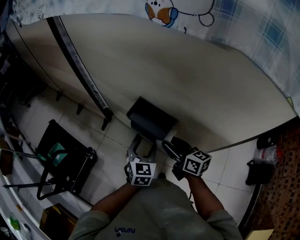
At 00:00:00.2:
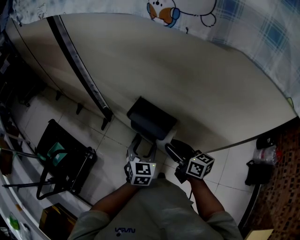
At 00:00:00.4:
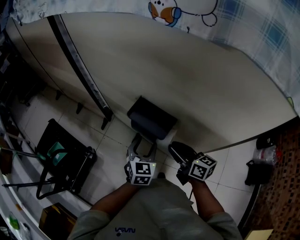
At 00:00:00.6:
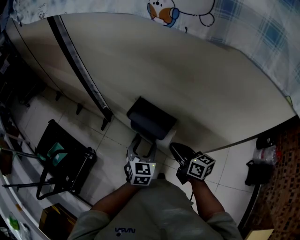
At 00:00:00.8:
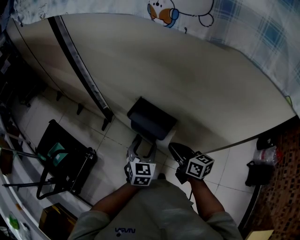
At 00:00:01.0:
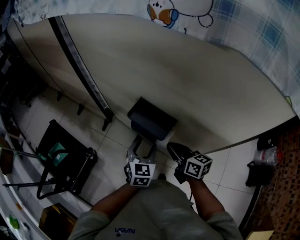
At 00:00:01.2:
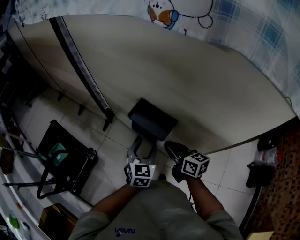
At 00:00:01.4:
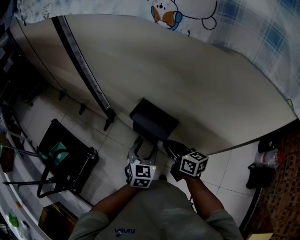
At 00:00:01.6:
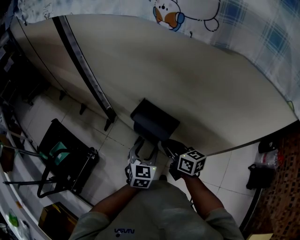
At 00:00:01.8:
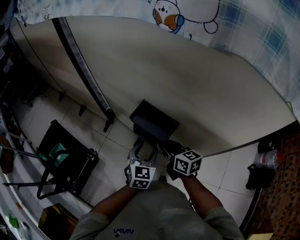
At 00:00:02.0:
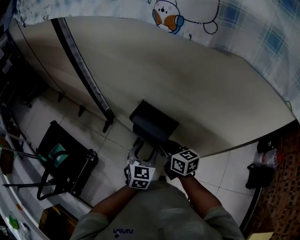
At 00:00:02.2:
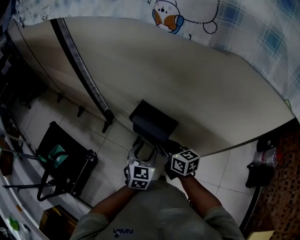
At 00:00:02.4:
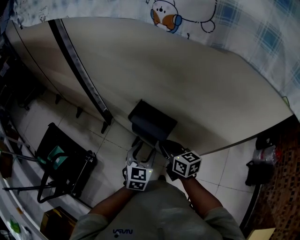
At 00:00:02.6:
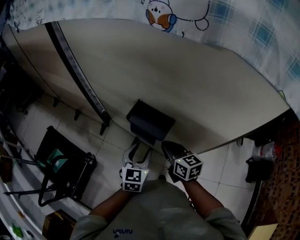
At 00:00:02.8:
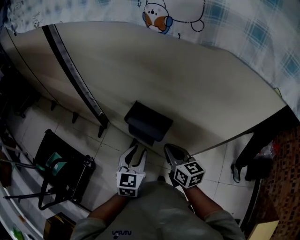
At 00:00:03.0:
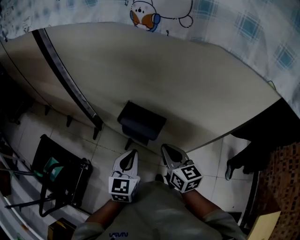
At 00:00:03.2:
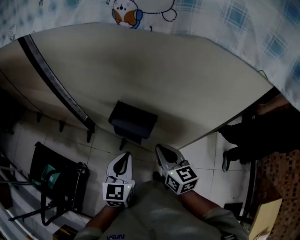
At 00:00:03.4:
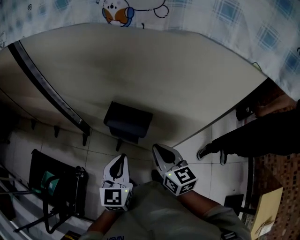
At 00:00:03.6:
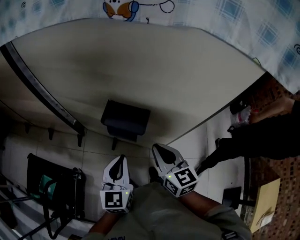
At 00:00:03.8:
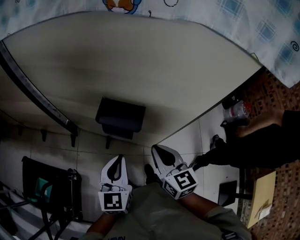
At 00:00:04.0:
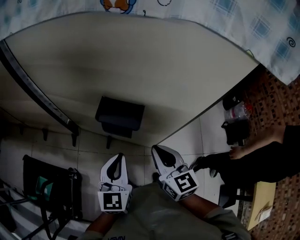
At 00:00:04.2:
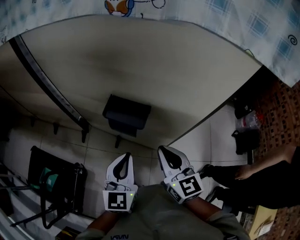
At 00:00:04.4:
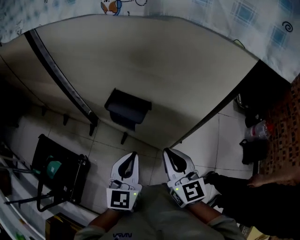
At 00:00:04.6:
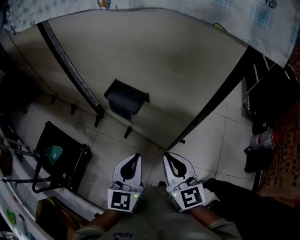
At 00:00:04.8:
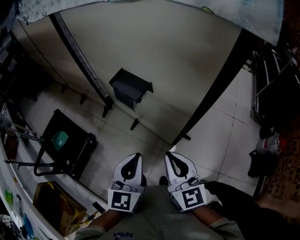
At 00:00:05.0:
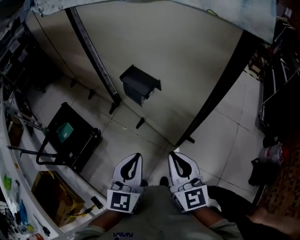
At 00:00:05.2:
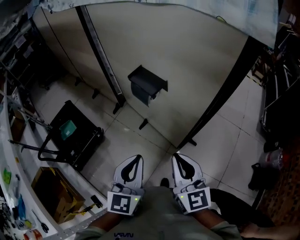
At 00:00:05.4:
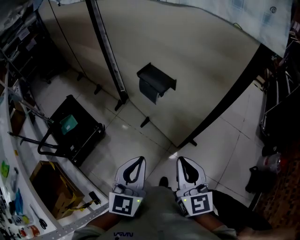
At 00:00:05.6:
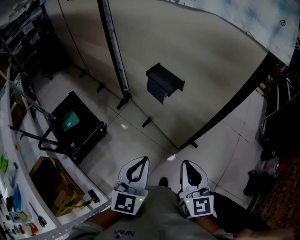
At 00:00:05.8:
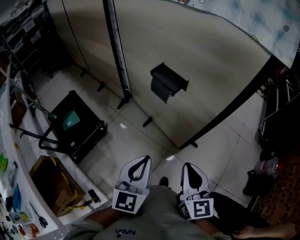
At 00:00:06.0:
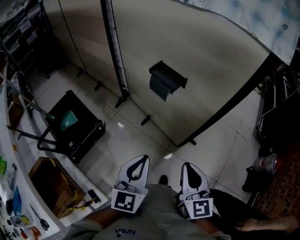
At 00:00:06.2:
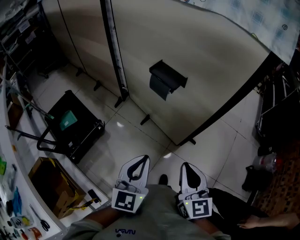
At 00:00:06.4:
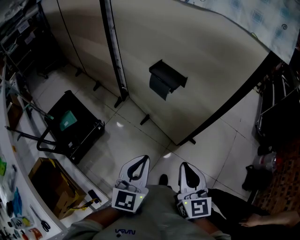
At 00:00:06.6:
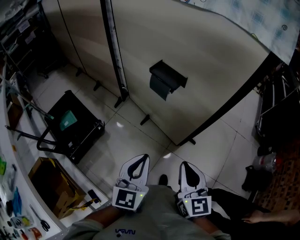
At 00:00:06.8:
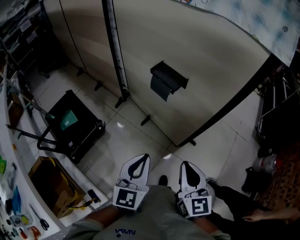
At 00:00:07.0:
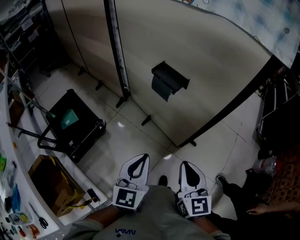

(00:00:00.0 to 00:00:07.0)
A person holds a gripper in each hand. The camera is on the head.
00:00:00.0 - 00:00:01.4: The right gripper closes its fingers.
00:00:01.4 - 00:00:02.8: The left gripper changes place by roughly 5 cm, and closes, while the right gripper rotates some 20 degrees.
00:00:02.8 - 00:00:04.2: The grippers both shift upward and backward by roughly 10 cm. The right gripper rotates about 20 degrees; the left gripper closes its fingers.
00:00:04.2 - 00:00:05.6: Both grippers travel together backward, approximately 20 cm.
00:00:05.6 - 00:00:07.0: There are only small adjustments of the grippers.

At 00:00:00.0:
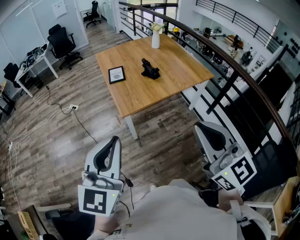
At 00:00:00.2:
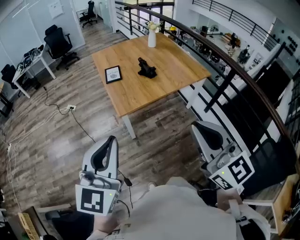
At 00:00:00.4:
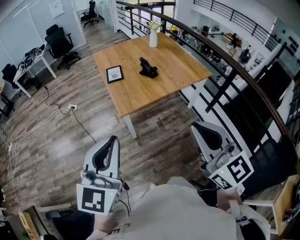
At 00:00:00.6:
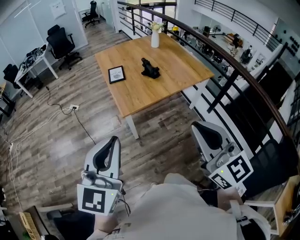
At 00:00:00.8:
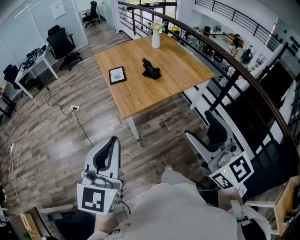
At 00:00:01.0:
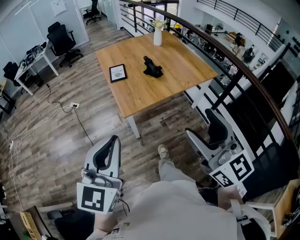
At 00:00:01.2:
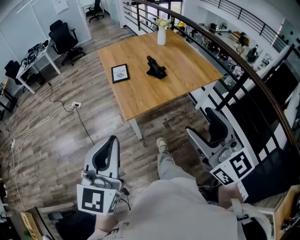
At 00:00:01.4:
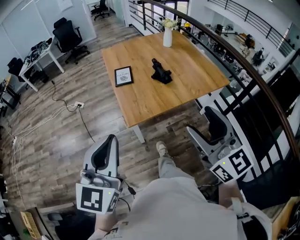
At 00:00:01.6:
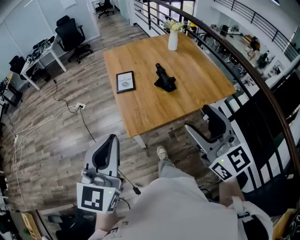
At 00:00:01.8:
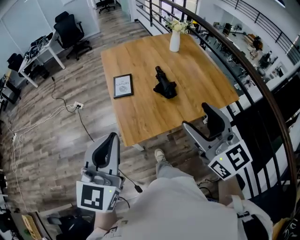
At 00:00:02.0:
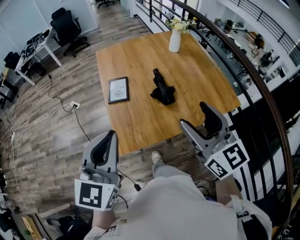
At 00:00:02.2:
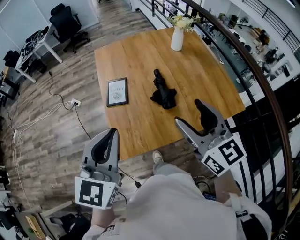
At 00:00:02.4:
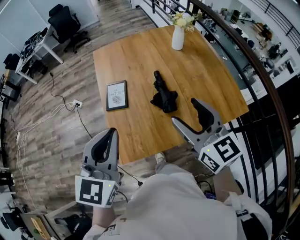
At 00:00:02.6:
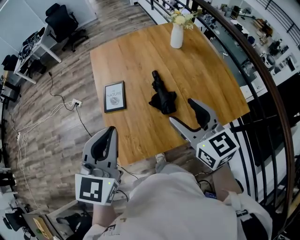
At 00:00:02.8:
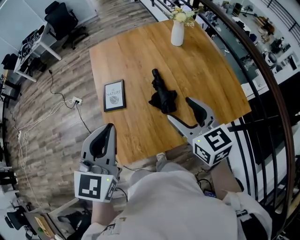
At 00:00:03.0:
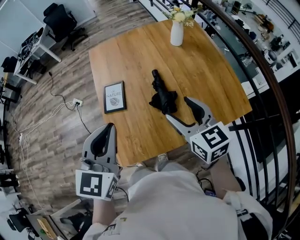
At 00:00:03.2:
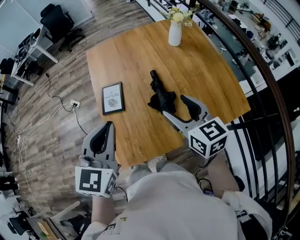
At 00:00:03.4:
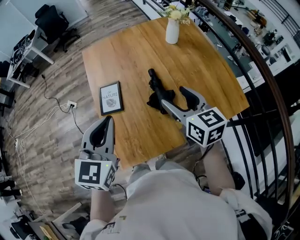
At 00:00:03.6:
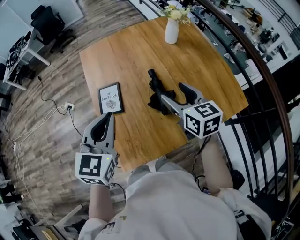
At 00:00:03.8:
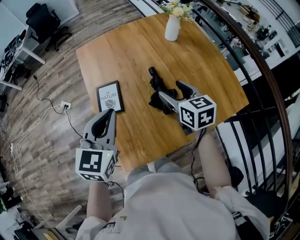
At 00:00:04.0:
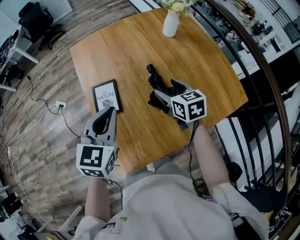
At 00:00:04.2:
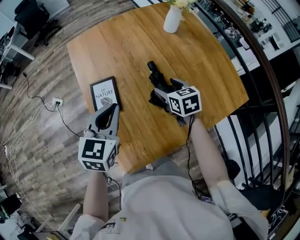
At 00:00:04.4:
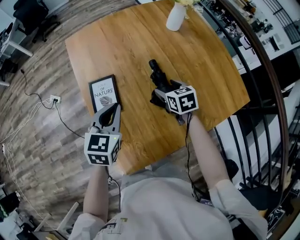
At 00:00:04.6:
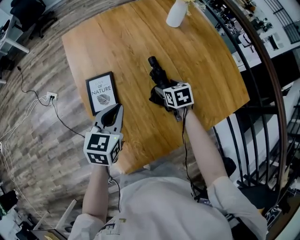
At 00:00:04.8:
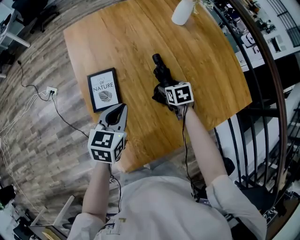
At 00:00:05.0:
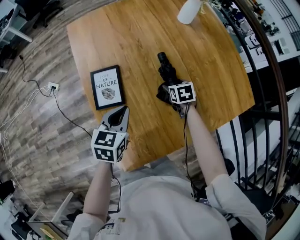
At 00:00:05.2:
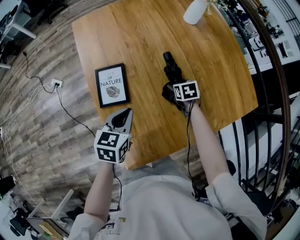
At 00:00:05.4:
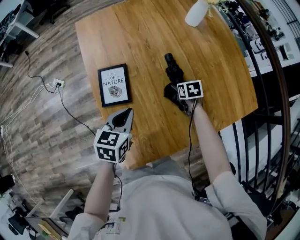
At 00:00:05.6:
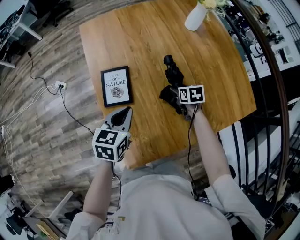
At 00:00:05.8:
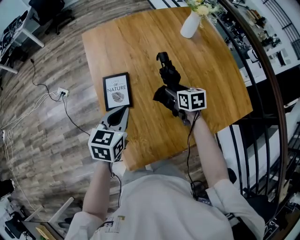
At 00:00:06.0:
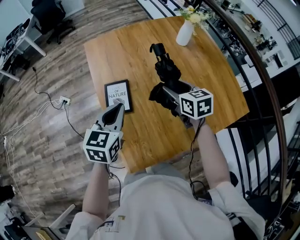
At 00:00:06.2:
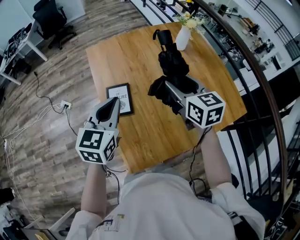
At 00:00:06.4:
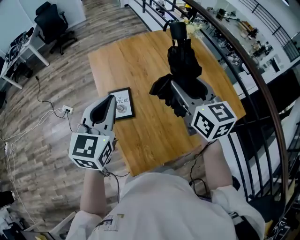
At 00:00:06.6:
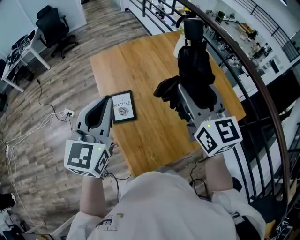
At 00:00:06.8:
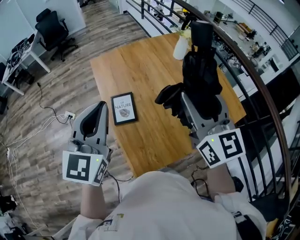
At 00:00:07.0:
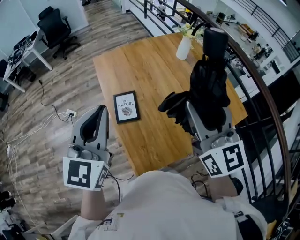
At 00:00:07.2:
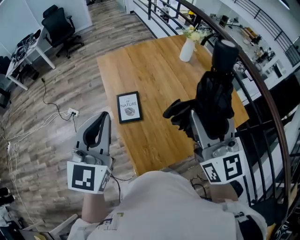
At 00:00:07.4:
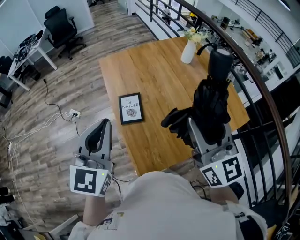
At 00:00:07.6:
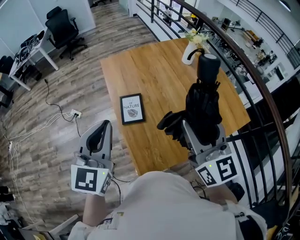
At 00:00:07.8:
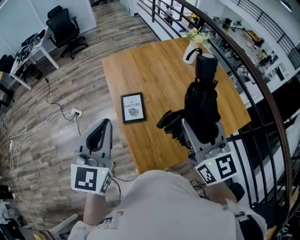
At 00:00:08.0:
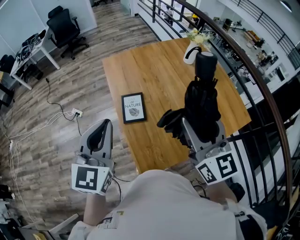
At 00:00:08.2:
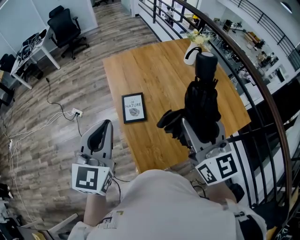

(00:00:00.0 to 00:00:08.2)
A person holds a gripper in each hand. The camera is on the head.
00:00:00.0 - 00:00:01.6: The grippers both shift forward by about 25 cm. The right gripper opens its fingers.
00:00:01.6 - 00:00:03.2: The grippers both shift forward by some 35 cm. The right gripper rotates about 30 degrees.
00:00:03.2 - 00:00:05.0: Both grippers travel together downward, approximately 35 cm. The left gripper swivels approximately 30 degrees. Meanwhile the right gripper points its fingers approximately 40 degrees further downward.
00:00:05.0 - 00:00:06.6: The left gripper goes about 35 cm upward, and angles its fingers upward, by roughly 30 degrees; the right gripper heads upward, covering roughly 50 cm, and tilts its fingers some 60 degrees upward.
00:00:06.6 - 00:00:08.2: The left gripper shifts about 10 cm backward and to the left, while the right gripper is displaced backward by roughly 10 cm.

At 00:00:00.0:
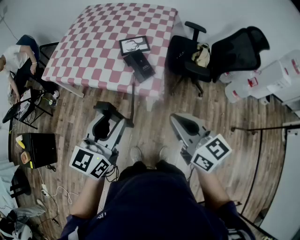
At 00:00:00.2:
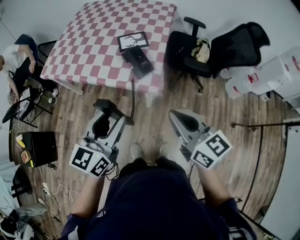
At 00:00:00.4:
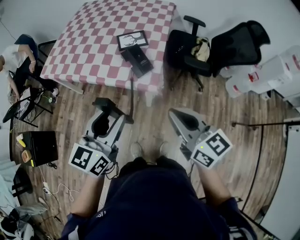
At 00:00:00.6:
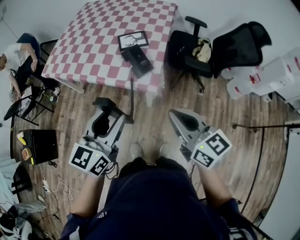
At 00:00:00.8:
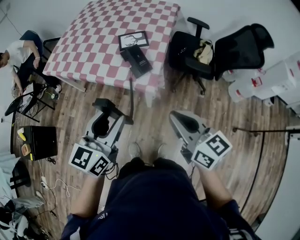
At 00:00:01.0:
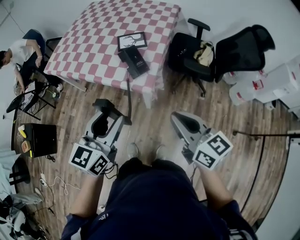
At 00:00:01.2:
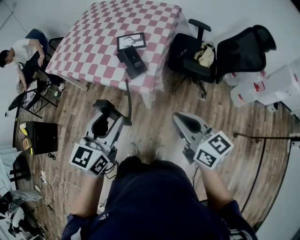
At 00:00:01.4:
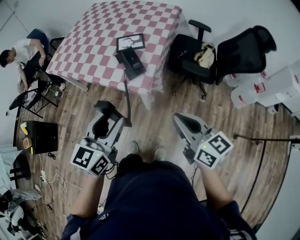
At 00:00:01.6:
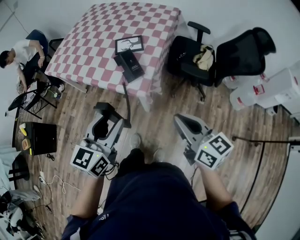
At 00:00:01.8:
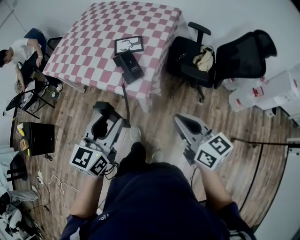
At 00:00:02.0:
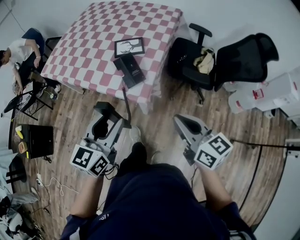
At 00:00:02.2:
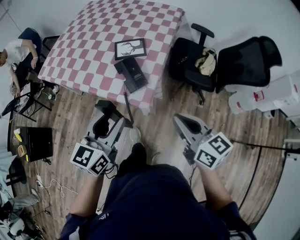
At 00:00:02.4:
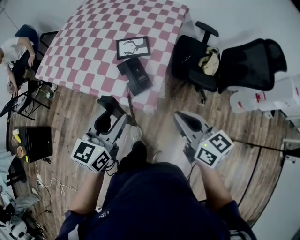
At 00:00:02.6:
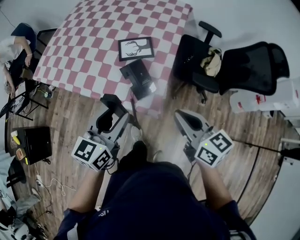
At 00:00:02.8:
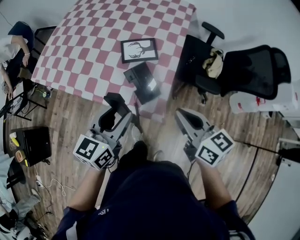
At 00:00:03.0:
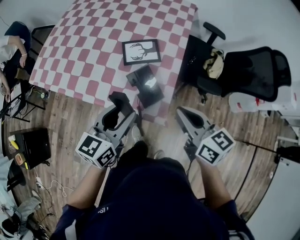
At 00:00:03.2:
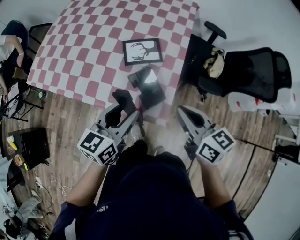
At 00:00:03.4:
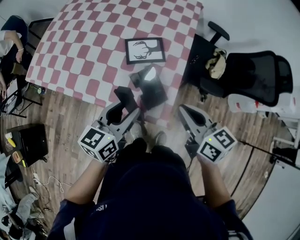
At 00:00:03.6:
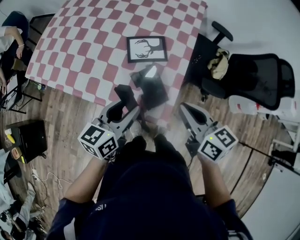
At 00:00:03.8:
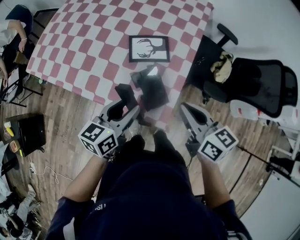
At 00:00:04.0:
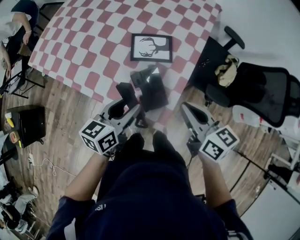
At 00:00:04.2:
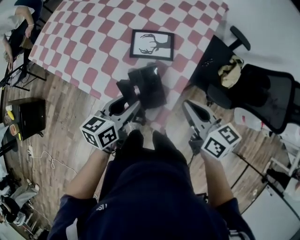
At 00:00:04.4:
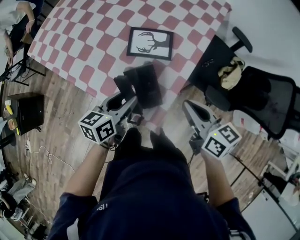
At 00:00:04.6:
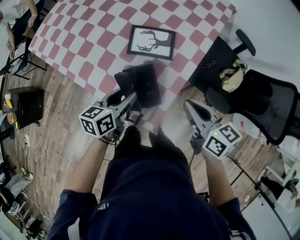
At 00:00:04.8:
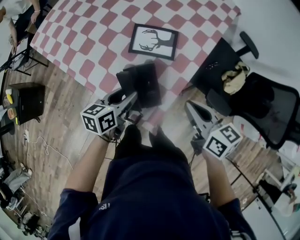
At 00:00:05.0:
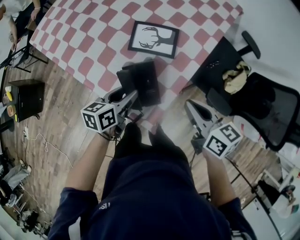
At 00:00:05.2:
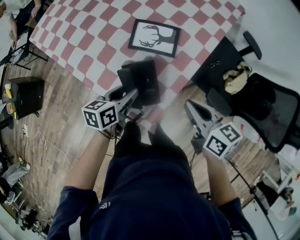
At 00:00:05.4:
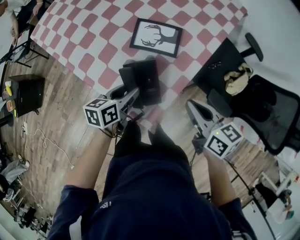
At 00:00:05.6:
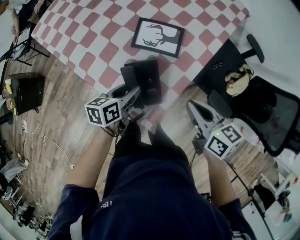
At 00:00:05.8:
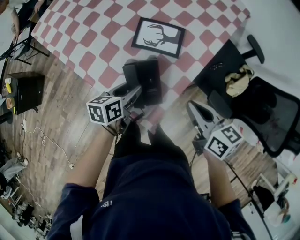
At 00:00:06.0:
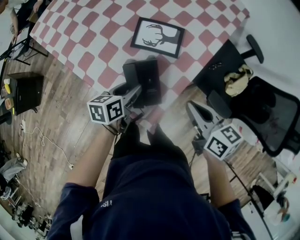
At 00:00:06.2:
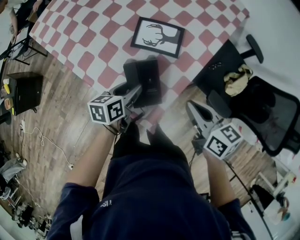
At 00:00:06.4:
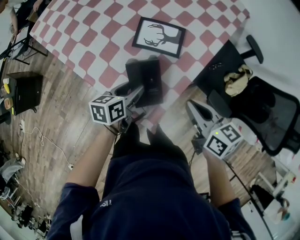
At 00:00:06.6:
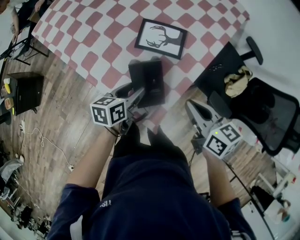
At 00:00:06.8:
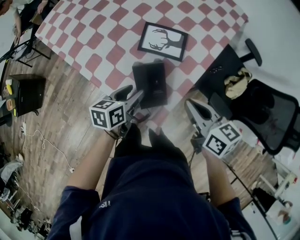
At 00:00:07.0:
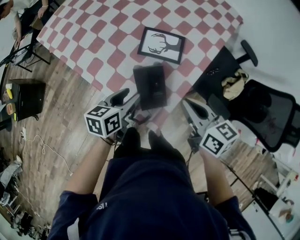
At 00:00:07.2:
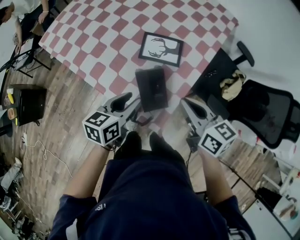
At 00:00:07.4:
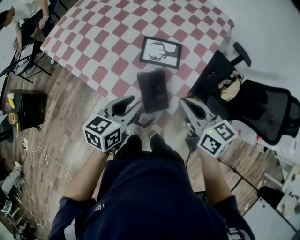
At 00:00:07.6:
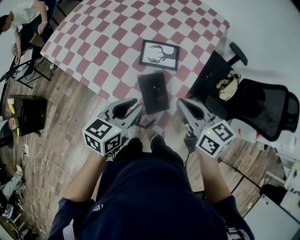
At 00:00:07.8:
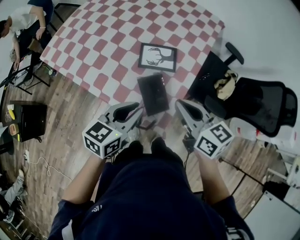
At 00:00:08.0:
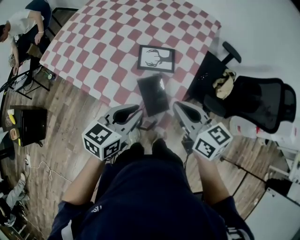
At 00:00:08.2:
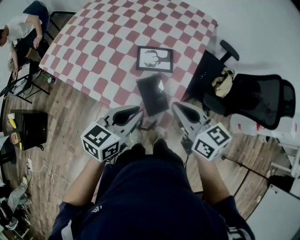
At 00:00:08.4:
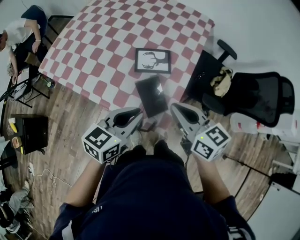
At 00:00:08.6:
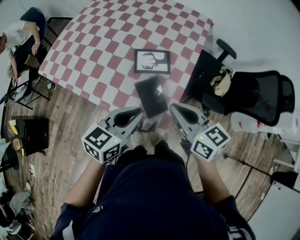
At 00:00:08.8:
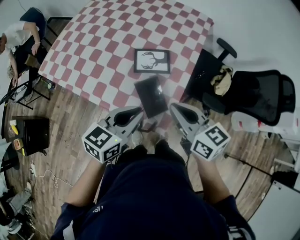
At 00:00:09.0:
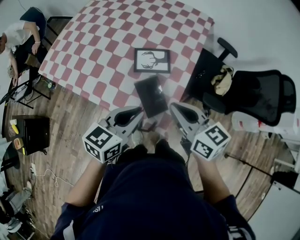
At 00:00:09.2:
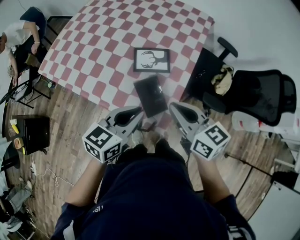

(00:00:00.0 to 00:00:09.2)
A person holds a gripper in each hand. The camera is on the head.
00:00:00.0 - 00:00:01.6: The grippers both shift to the right by roughly 10 cm.
00:00:01.6 - 00:00:03.0: The left gripper moves forward, approximately 25 cm. Meanwhile the right gripper is displaced forward and to the left by roughly 25 cm.
00:00:03.0 - 00:00:04.6: The left gripper moves downward and forward, approximately 15 cm, and rotates some 30 degrees; the right gripper travels forward, downward and to the right by about 15 cm.
00:00:04.6 - 00:00:06.2: The left gripper is displaced downward by some 5 cm.
00:00:06.2 - 00:00:07.6: The right gripper goes about 15 cm upward and to the left. The left gripper moves upward, roughly 15 cm, swivels roughly 30 degrees, and closes up.
00:00:07.6 - 00:00:09.2: The grippers stay close to where they were, moving slightly.
